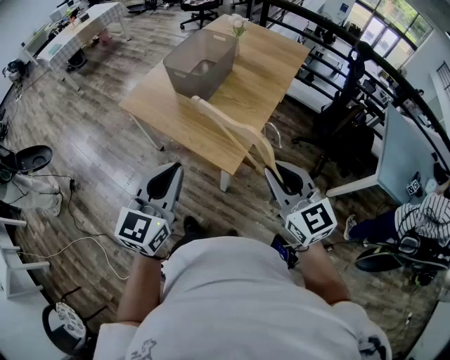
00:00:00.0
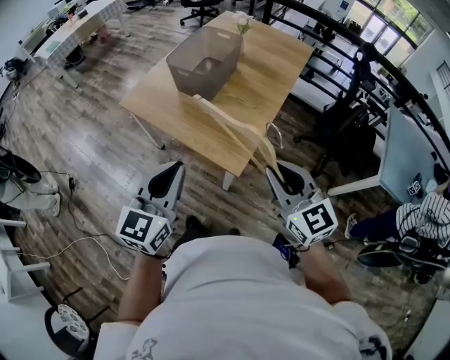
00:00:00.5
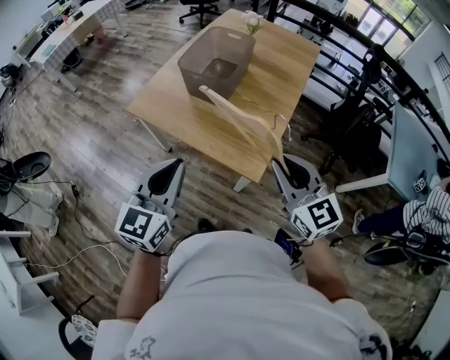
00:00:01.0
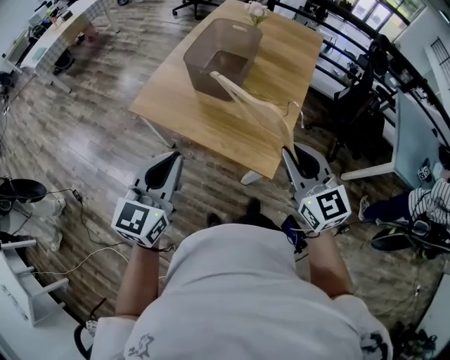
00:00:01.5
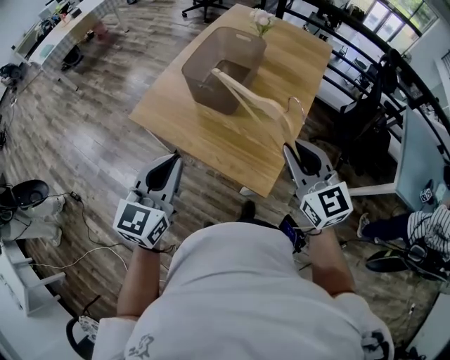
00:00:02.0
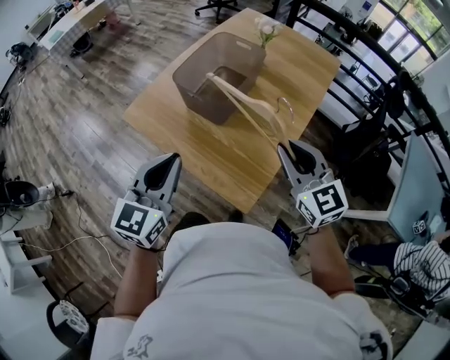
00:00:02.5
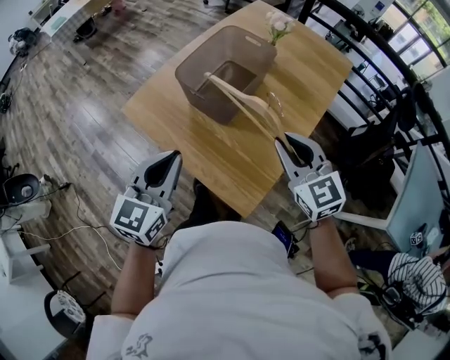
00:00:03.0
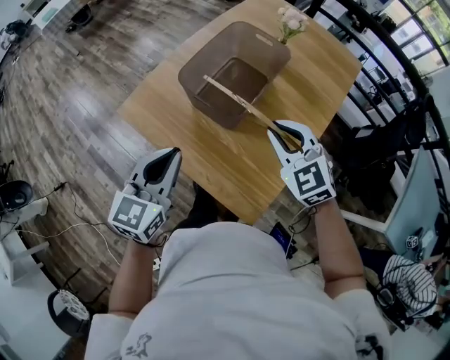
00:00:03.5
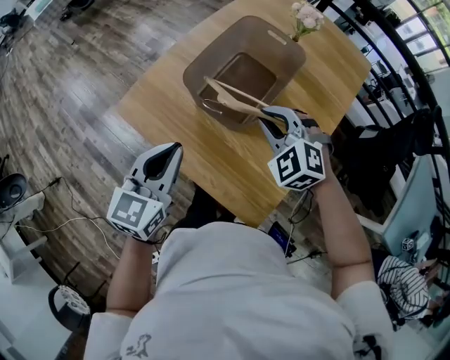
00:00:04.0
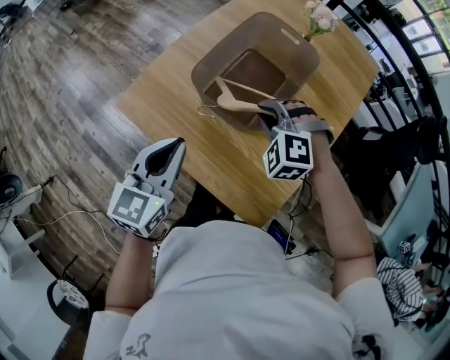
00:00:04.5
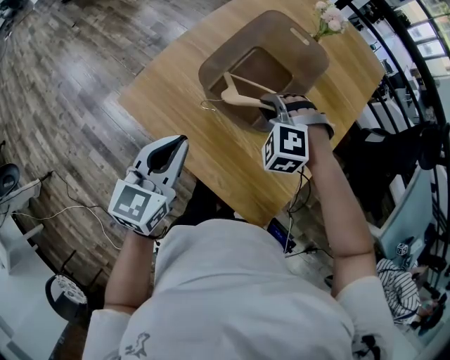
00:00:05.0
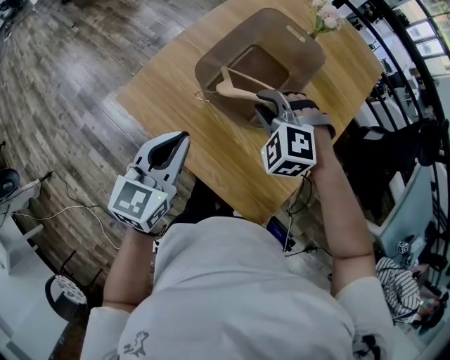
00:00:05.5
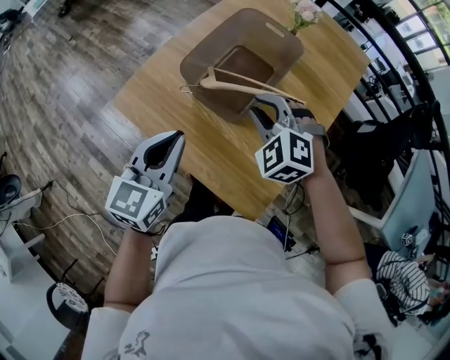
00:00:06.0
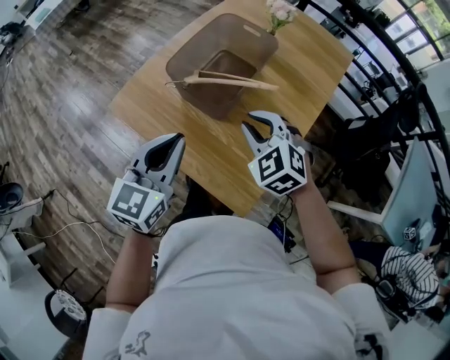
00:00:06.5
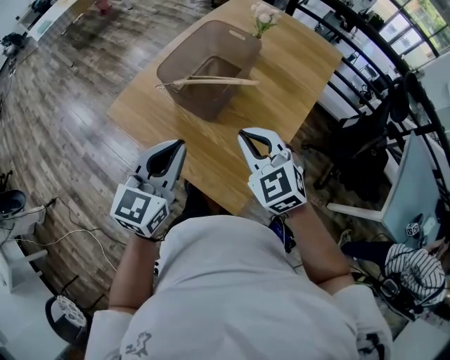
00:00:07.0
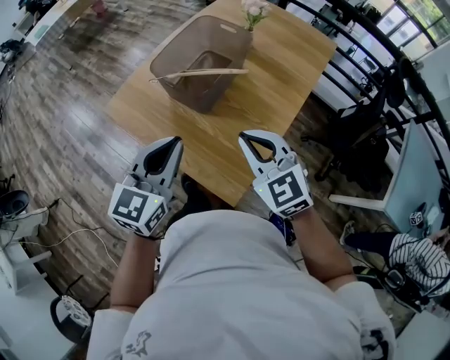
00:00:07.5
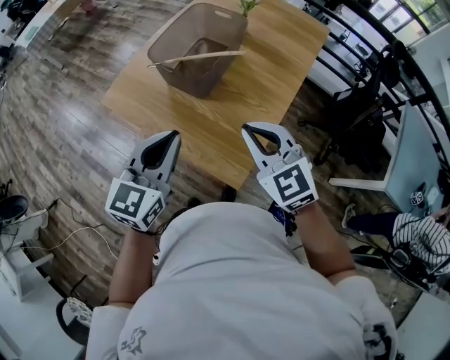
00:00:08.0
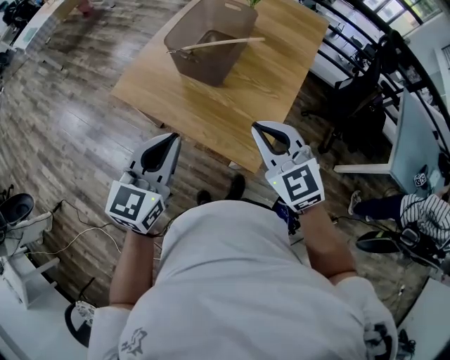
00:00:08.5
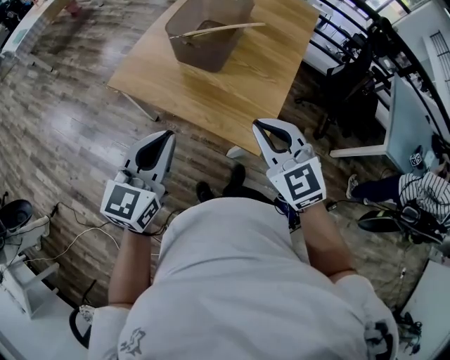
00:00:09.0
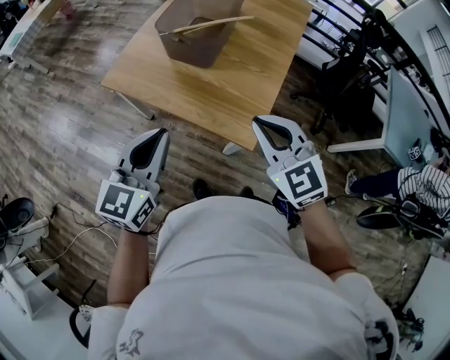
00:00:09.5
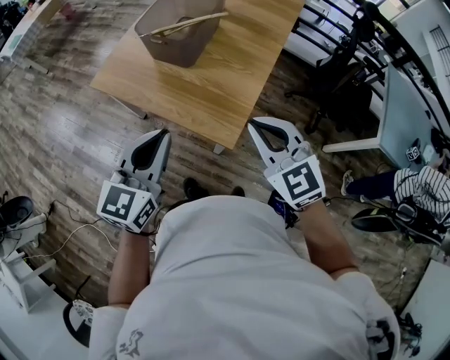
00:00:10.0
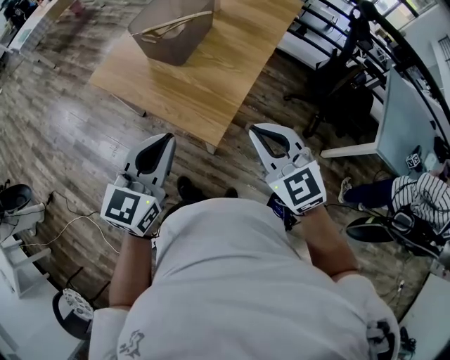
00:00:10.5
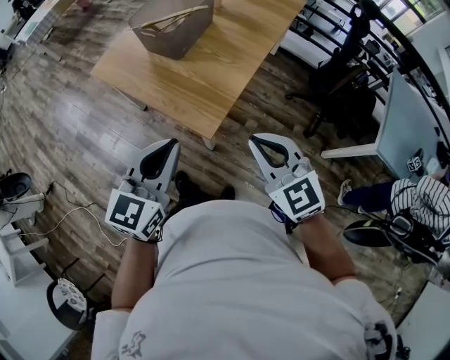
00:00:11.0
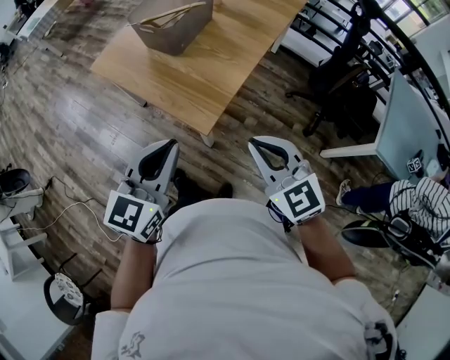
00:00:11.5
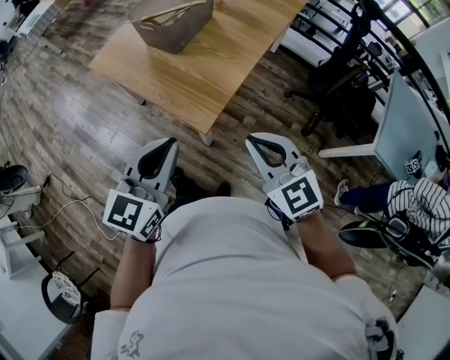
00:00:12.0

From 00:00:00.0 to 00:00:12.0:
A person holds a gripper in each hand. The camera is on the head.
From 00:00:00.0 to 00:00:02.0: The two grippers go approximately 20 cm forward and to the left.
From 00:00:02.0 to 00:00:04.0: The right gripper is displaced forward and downward by approximately 30 cm, and tilts its fingers some 30 degrees downward. Meanwhile the left gripper goes some 20 cm forward.
From 00:00:04.0 to 00:00:06.0: The right gripper moves some 5 cm downward and comes back.
From 00:00:06.0 to 00:00:08.0: The right gripper is displaced backward by about 20 cm, turns by about 40 degrees, and closes its fingers; the left gripper heads backward and to the right, covering roughly 15 cm.
From 00:00:08.0 to 00:00:10.0: The two grippers go approximately 15 cm backward.
From 00:00:10.0 to 00:00:12.0: The grippers both shift to the right and backward by approximately 15 cm.

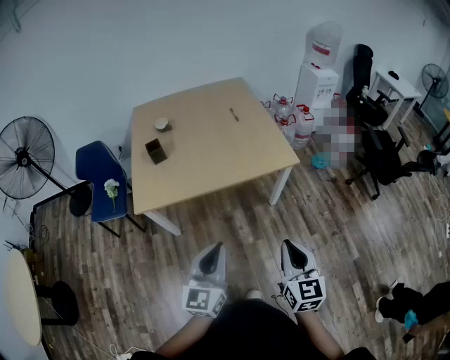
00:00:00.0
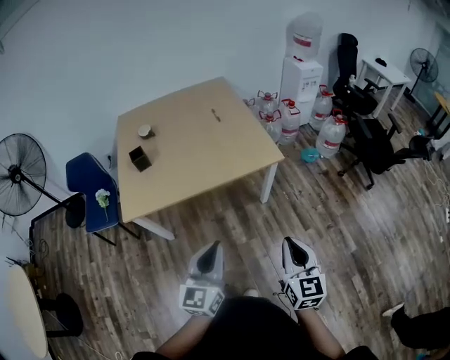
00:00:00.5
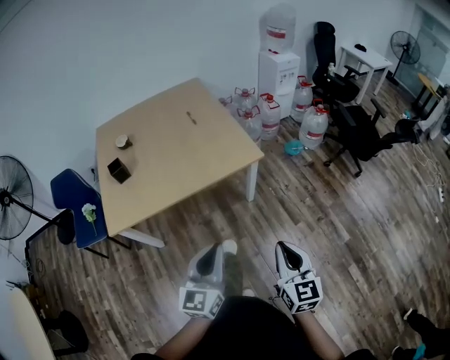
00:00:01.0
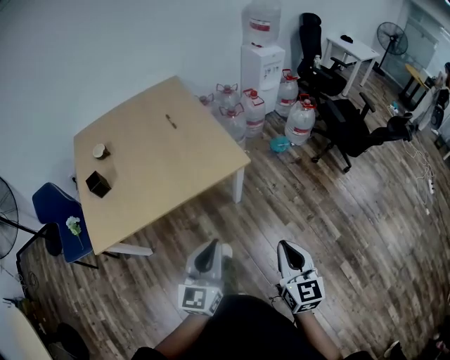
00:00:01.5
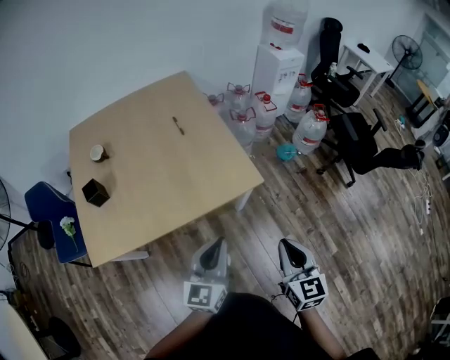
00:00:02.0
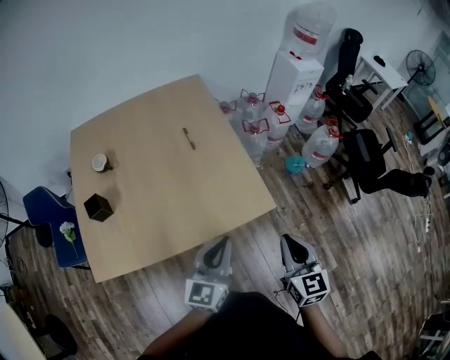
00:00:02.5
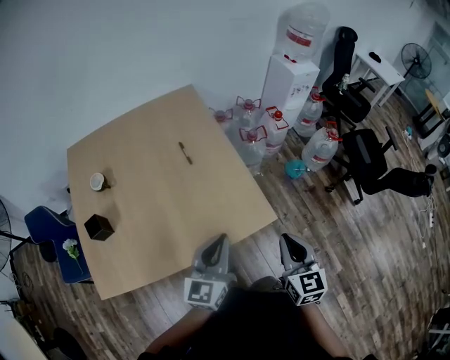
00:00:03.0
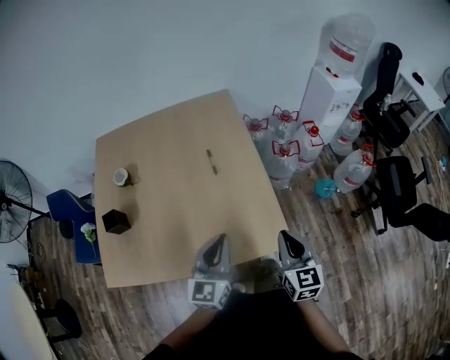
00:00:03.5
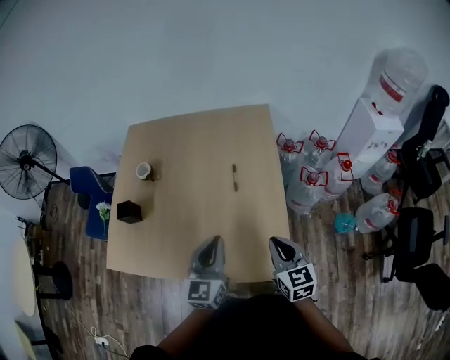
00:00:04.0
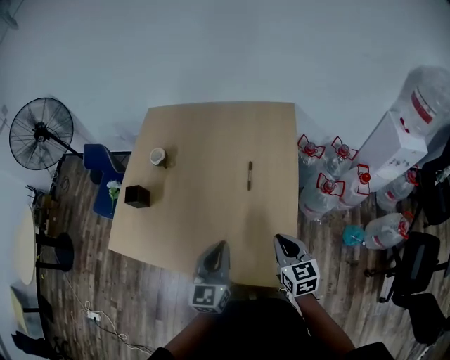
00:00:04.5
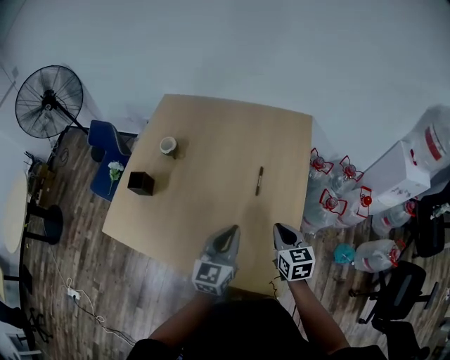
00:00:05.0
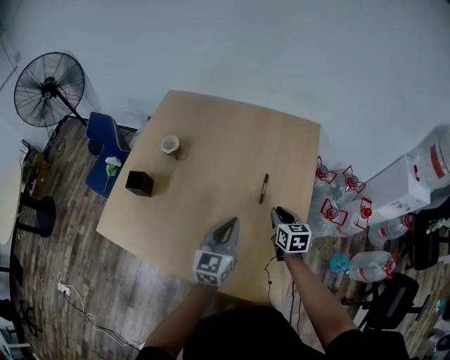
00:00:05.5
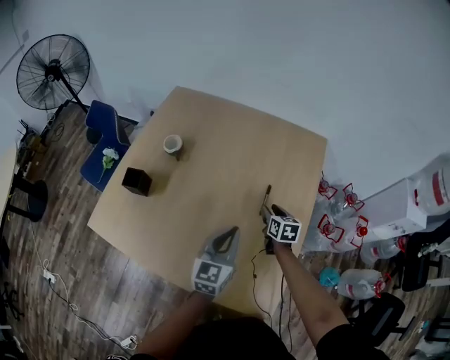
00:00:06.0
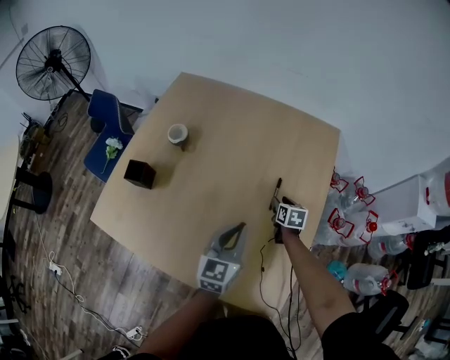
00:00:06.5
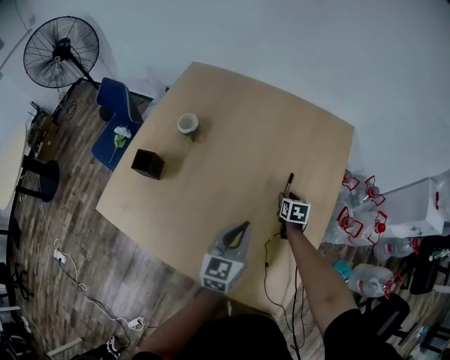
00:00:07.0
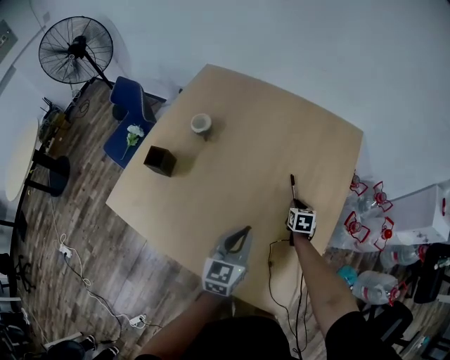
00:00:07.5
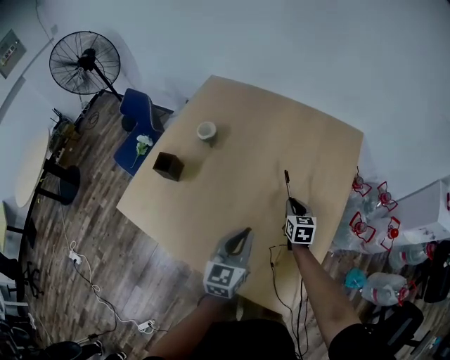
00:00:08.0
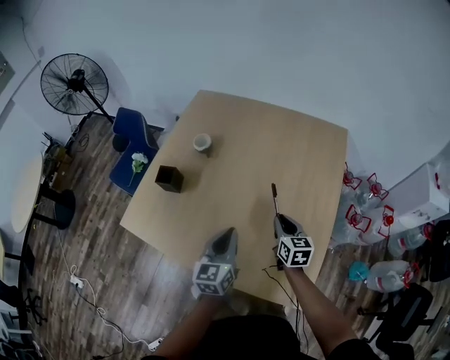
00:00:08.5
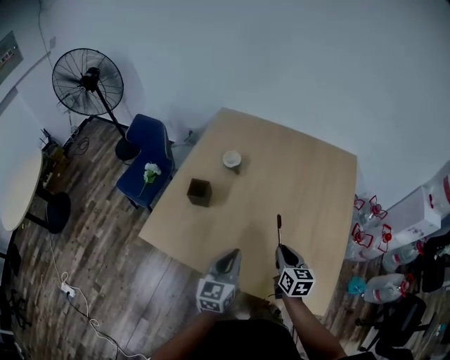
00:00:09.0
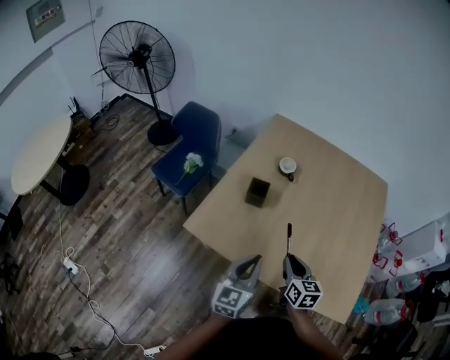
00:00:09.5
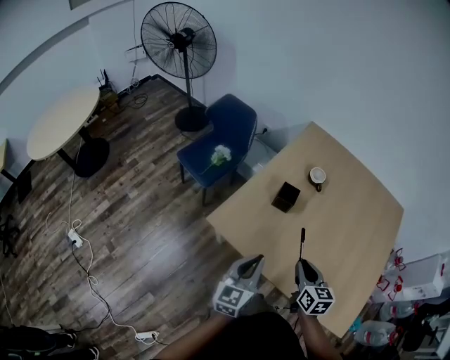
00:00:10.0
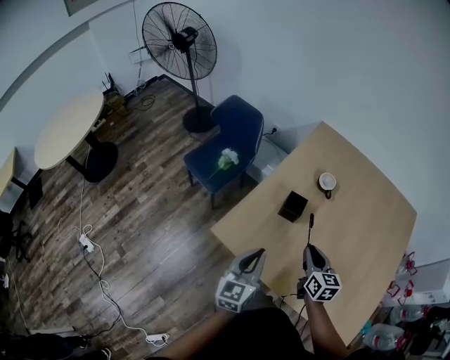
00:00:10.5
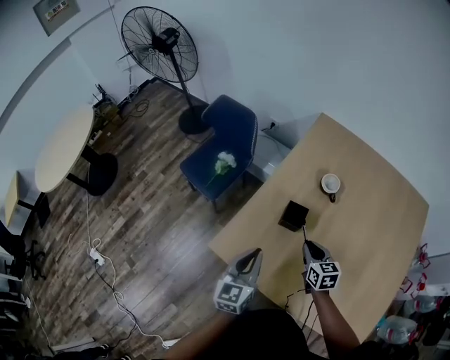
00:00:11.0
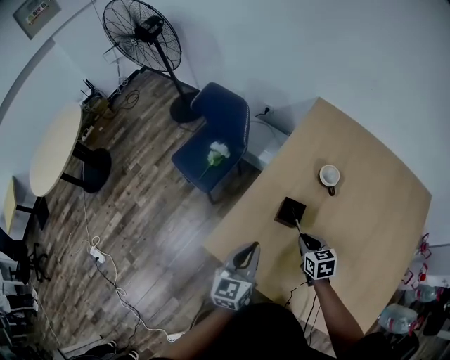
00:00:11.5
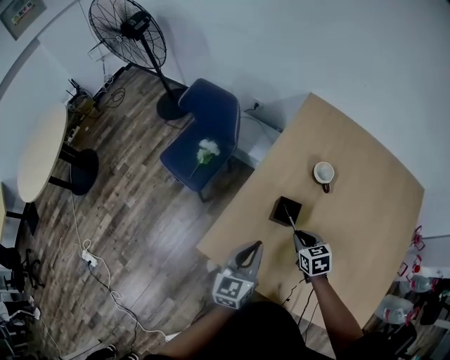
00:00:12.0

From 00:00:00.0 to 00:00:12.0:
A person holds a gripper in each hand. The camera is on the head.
From 00:00:00.0 to 00:00:02.0: The grippers both shift forward by some 30 cm.
From 00:00:02.0 to 00:00:04.0: The left gripper ends up about 40 cm from where it was, and turns by roughly 30 degrees. Meanwhile the right gripper shifts by roughly 50 cm, and rotates roughly 30 degrees.
From 00:00:04.0 to 00:00:06.0: The right gripper shifts about 40 cm forward and downward, changes its angle by about 20 degrees, and opens its fingers; the left gripper shifts about 20 cm forward and downward.
From 00:00:06.0 to 00:00:08.0: The right gripper reaches about 10 cm downward, then returns, and closes. Meanwhile the left gripper changes place by about 5 cm.
From 00:00:08.0 to 00:00:10.0: Both grippers are carried to the left, roughly 60 cm.
From 00:00:10.0 to 00:00:12.0: The right gripper goes roughly 30 cm forward and downward, and rotates about 30 degrees. The left gripper heads forward, covering approximately 25 cm.

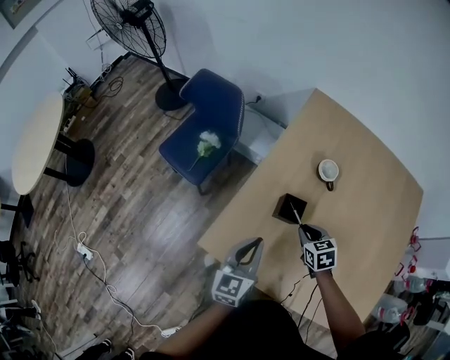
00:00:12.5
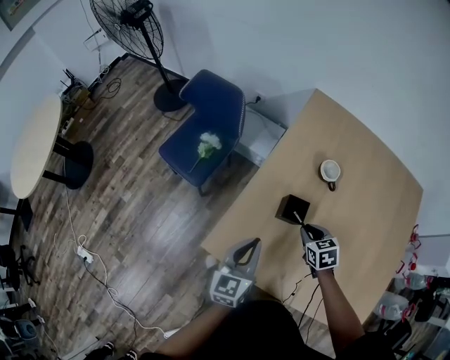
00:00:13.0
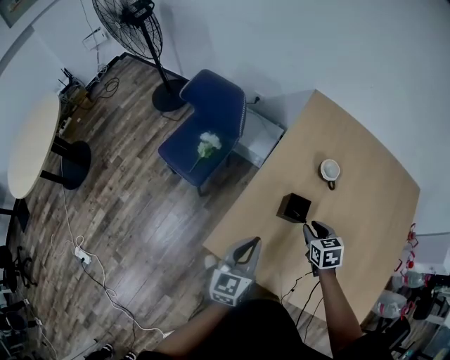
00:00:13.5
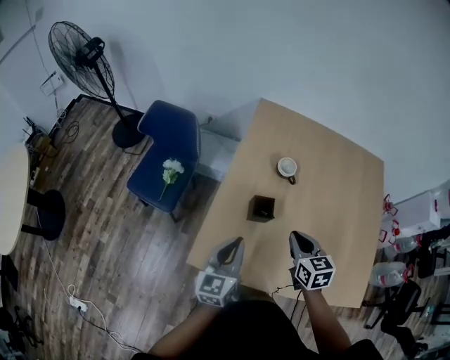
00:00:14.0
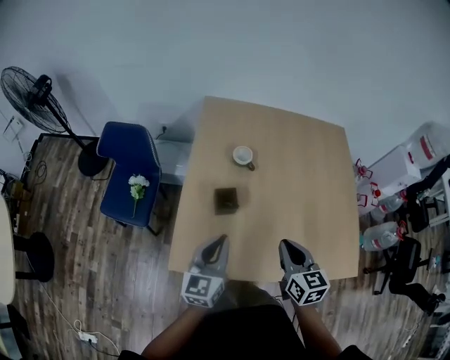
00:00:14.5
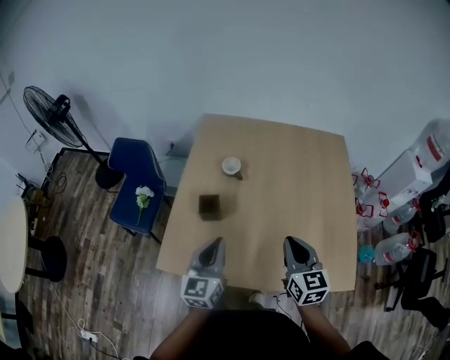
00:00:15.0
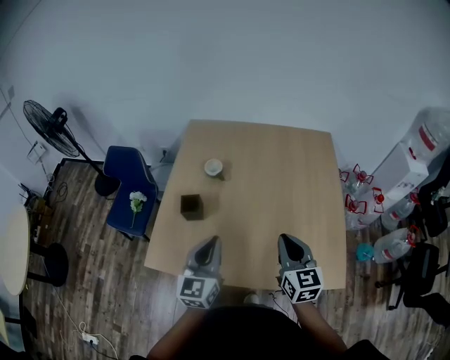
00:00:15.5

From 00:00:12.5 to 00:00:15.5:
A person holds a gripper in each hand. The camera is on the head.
From 00:00:12.5 to 00:00:14.0: The left gripper moves upward, approximately 5 cm; the right gripper goes about 15 cm upward and backward, and turns by roughly 30 degrees.
From 00:00:14.0 to 00:00:15.5: The right gripper moves to the right and backward, roughly 35 cm, and changes its angle by approximately 20 degrees. Meanwhile the left gripper travels to the right by some 30 cm.
